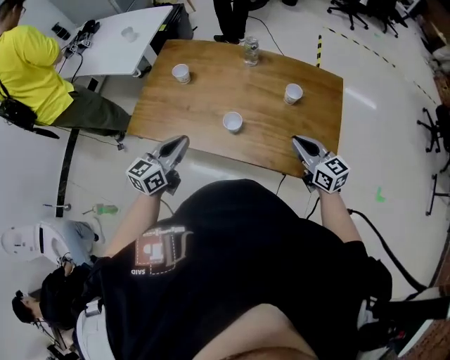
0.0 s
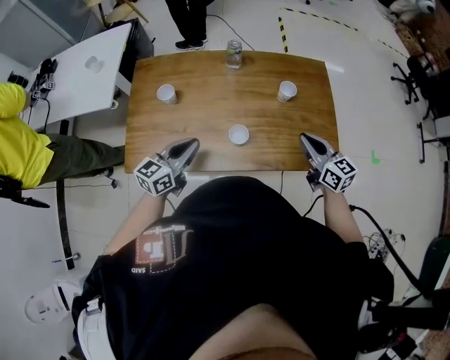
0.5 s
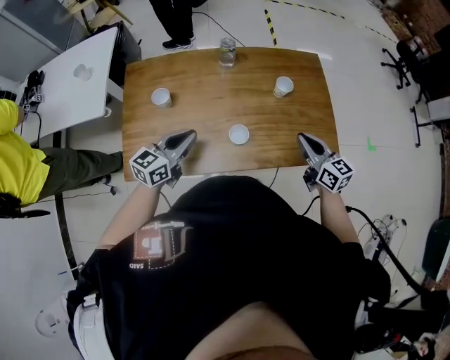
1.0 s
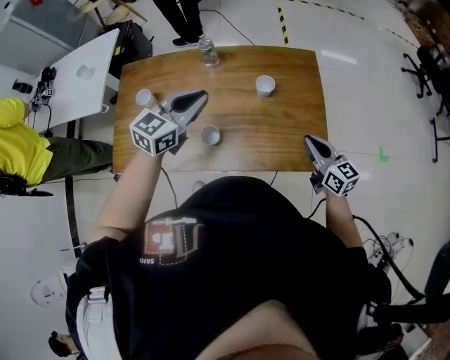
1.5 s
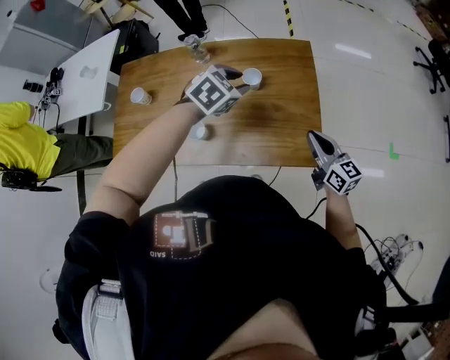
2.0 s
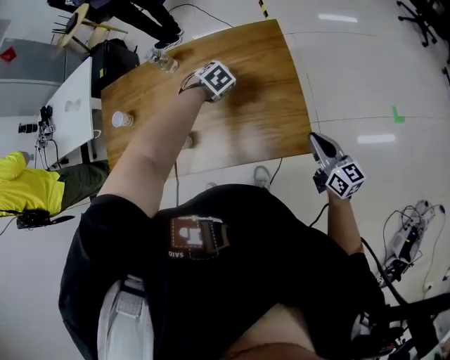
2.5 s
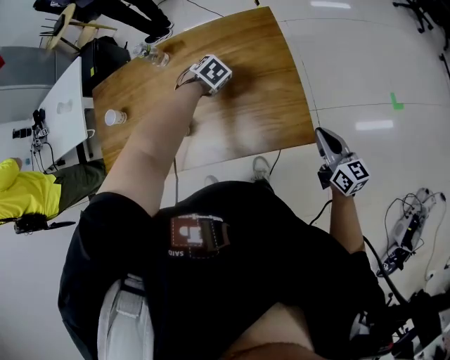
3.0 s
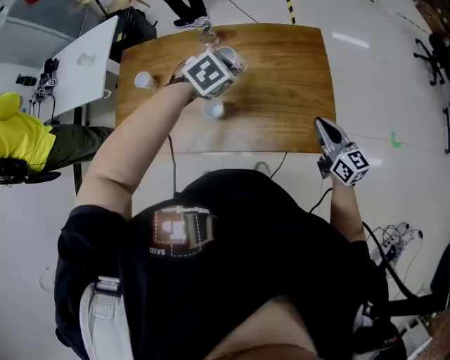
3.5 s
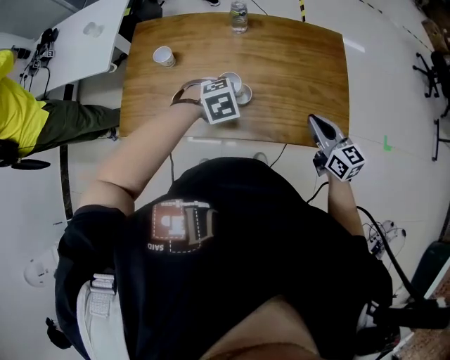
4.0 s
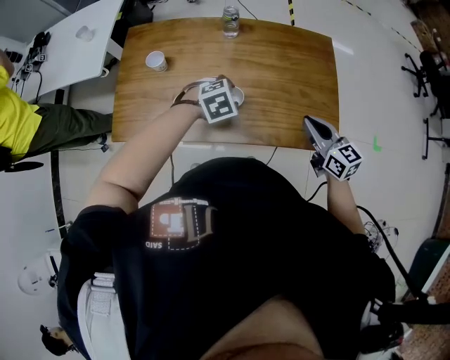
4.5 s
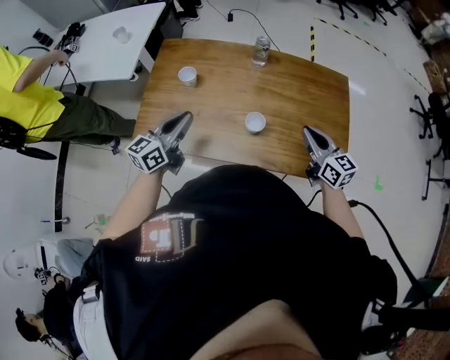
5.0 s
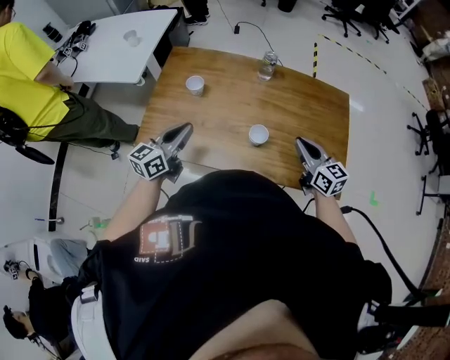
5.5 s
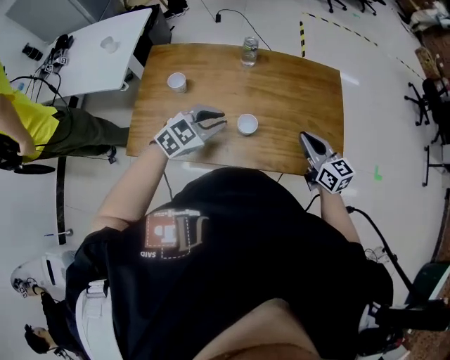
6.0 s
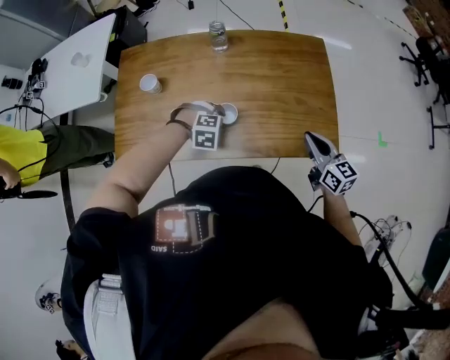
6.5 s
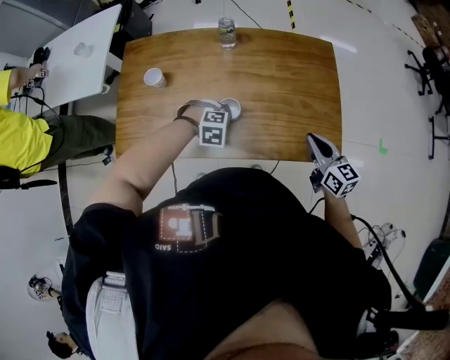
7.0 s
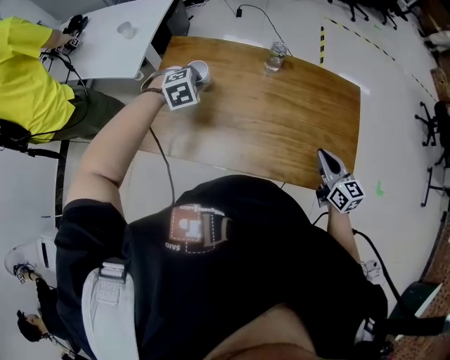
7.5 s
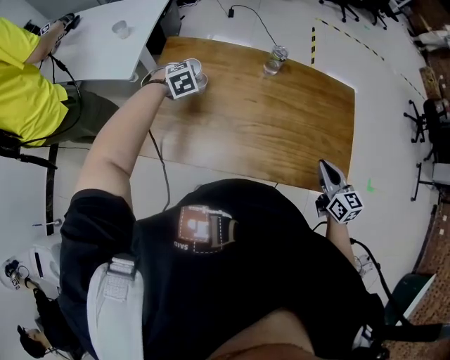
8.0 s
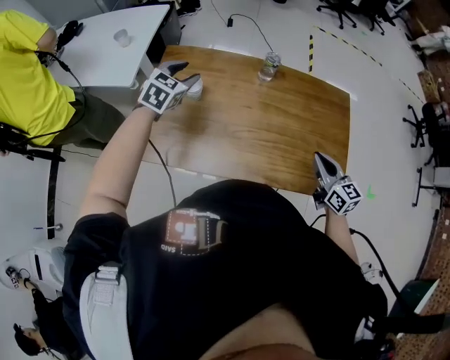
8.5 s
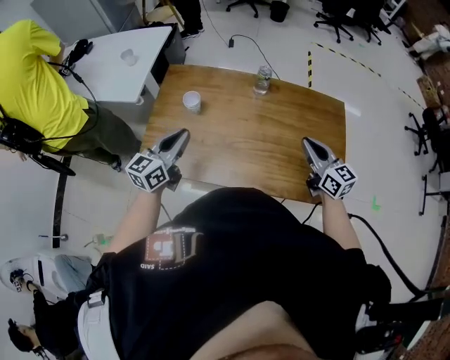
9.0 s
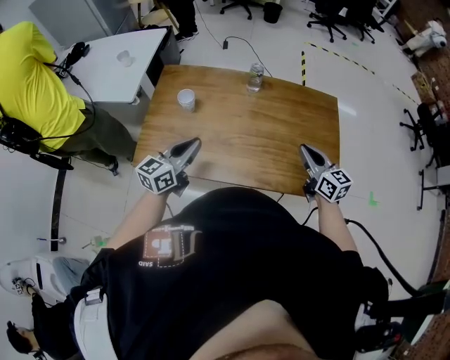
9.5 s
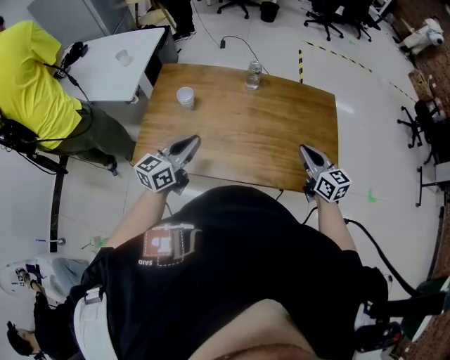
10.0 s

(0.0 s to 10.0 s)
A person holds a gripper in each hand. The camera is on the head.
0.0 s - 2.0 s: The left gripper travels upward and back again, approximately 5 cm each way, points its fingers roughly 40 degrees further downward, and opens its fingers. Meanwhile the right gripper moves some 20 cm, and turns by approximately 20 degrees.
2.0 s - 4.0 s: The left gripper moves up and down over roughly 20 cm, changing direction 2 times, turns by about 20 degrees, and closes up; the right gripper goes downward and returns, about 5 cm each way.
4.0 s - 6.0 s: The left gripper heads upward, covering roughly 10 cm, travels to the left and back again, approximately 20 cm each way, points its fingers about 40 degrees further upward, and opens and closes again.
6.0 s - 8.0 s: The left gripper shifts approximately 30 cm to the left, forward and downward, points its fingers some 40 degrees further downward, and opens and closes again. Meanwhile the right gripper reaches roughly 10 cm to the right, then returns.
8.0 s - 10.0 s: The left gripper moves backward and upward, some 25 cm, angles its fingers upward, by roughly 60 degrees, and opens, then closes again.

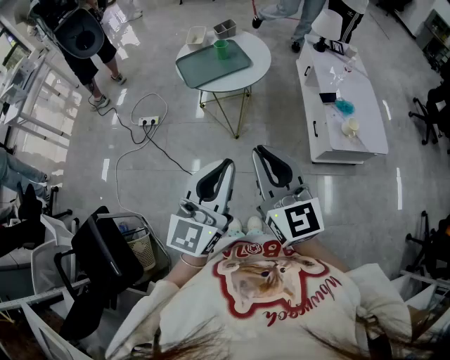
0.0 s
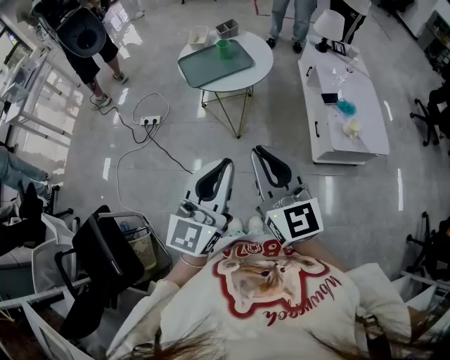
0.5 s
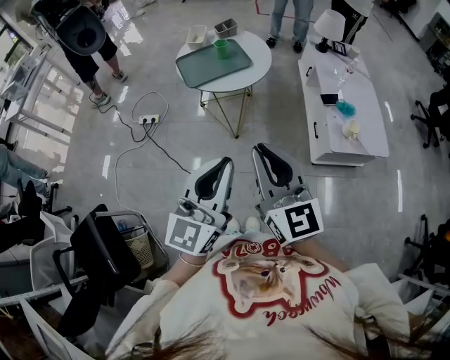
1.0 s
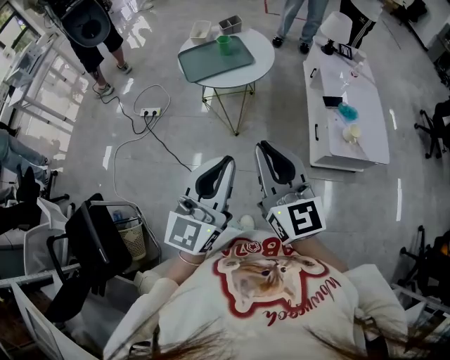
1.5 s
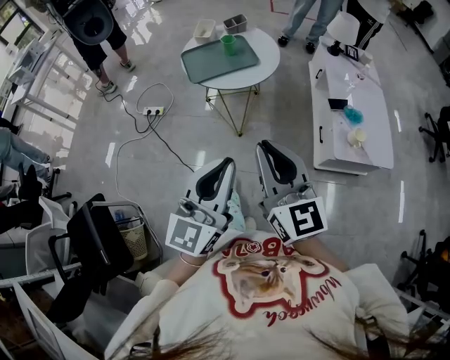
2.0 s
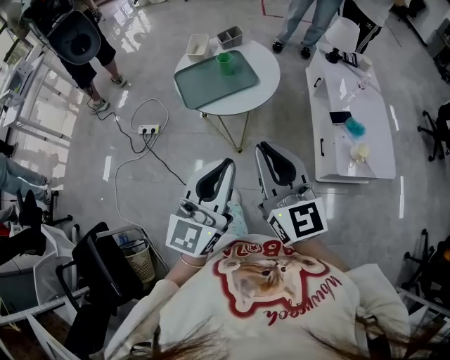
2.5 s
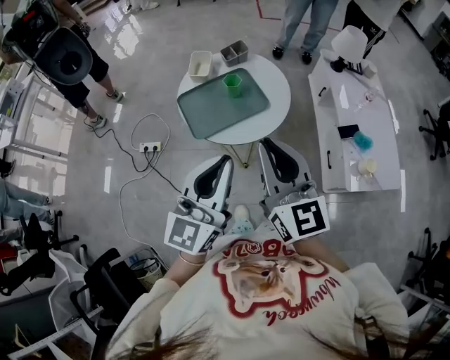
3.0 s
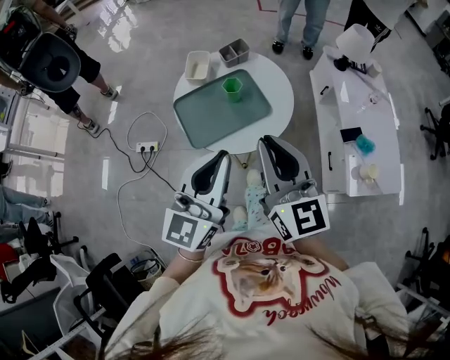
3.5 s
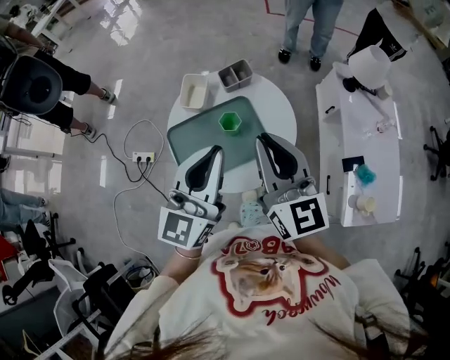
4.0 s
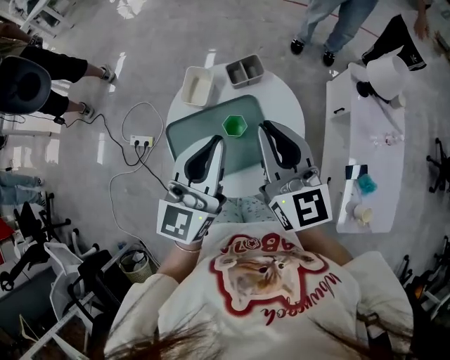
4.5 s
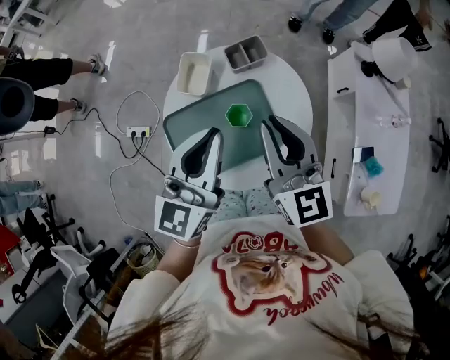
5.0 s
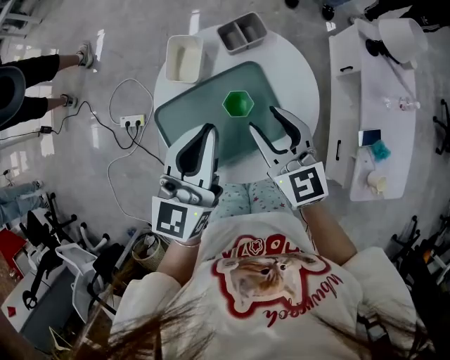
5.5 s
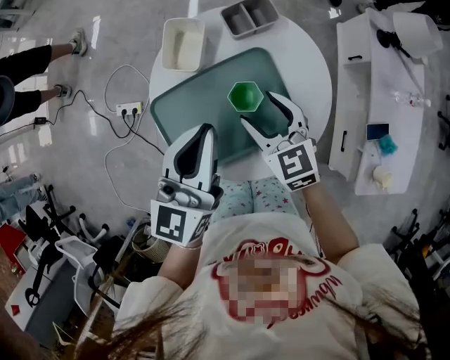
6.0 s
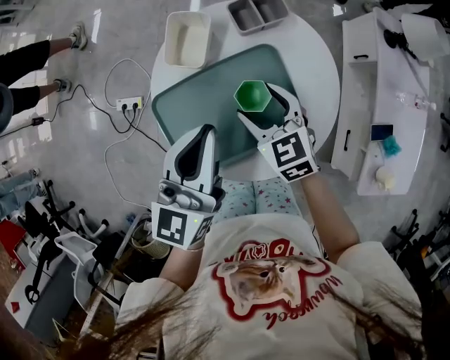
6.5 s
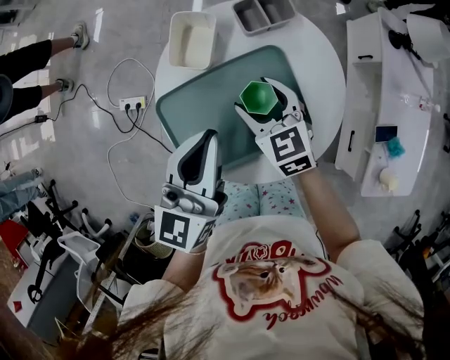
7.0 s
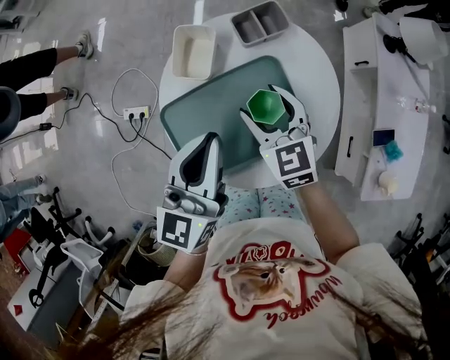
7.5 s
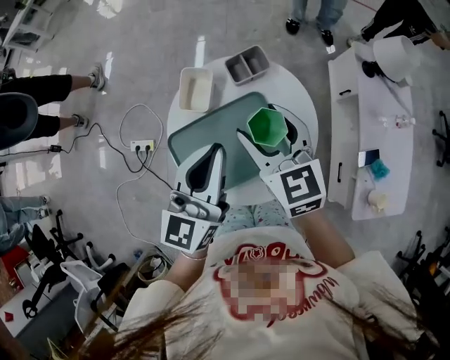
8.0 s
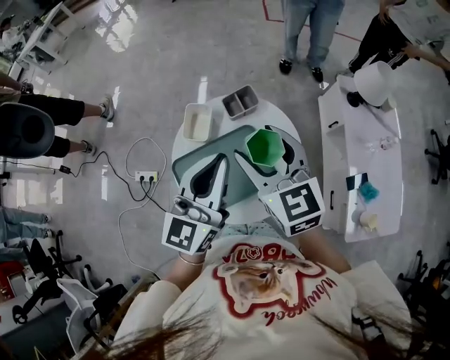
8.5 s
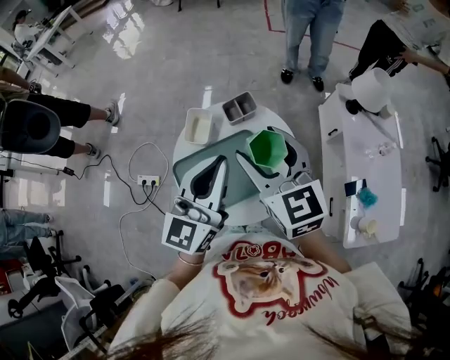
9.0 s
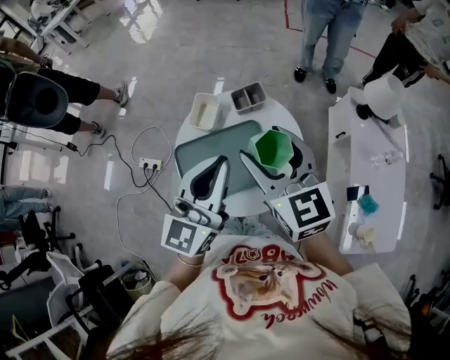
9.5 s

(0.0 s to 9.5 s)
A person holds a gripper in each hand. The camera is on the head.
0.0 s - 2.0 s: There are only small adjustments of the grippers.
2.0 s - 4.0 s: Both grippers are carried forward, approximately 50 cm.
4.0 s - 5.5 s: Both grippers move downward and forward, some 15 cm. The right gripper changes its angle by roughly 20 degrees, and opens.
5.5 s - 7.5 s: The right gripper is displaced downward and forward by roughly 10 cm, and opens up. Meanwhile the left gripper shifts by roughly 5 cm.
7.5 s - 9.5 s: The left gripper heads upward and to the right, covering roughly 15 cm. The right gripper goes approximately 25 cm upward.

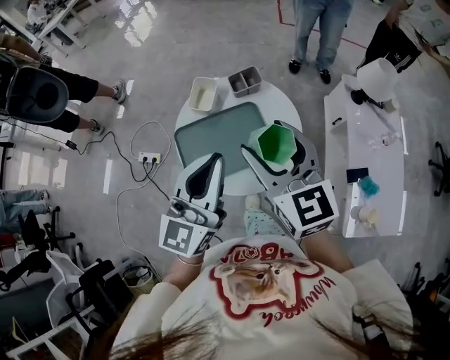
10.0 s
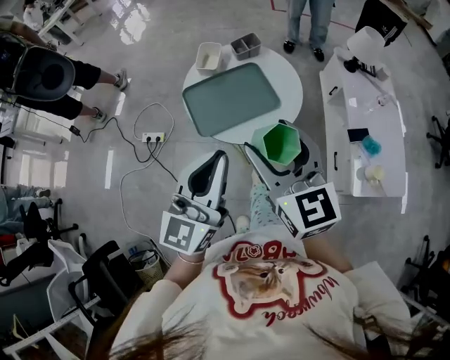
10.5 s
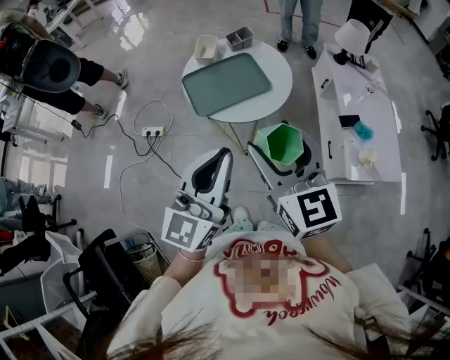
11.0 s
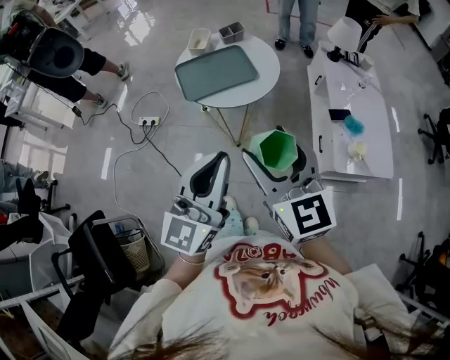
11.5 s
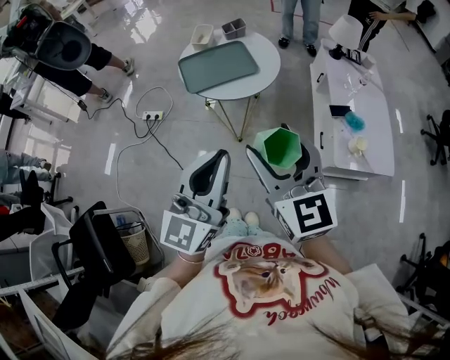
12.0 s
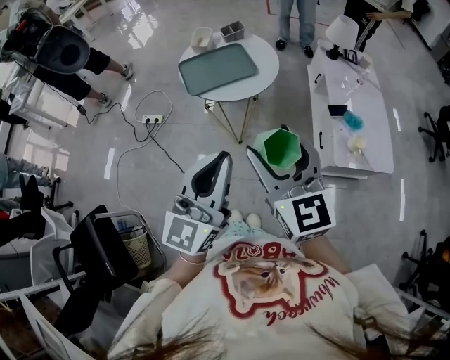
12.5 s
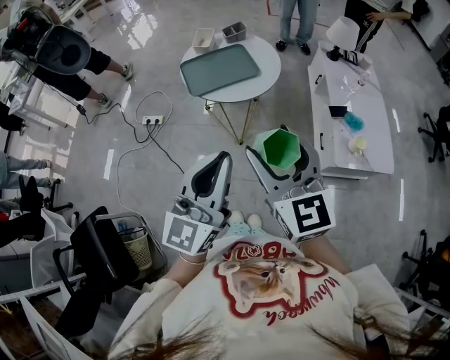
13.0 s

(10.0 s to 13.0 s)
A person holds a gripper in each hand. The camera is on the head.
10.0 s - 11.5 s: Both grippers travel together backward, about 35 cm.
11.5 s - 13.0 s: There are only small adjustments of the grippers.

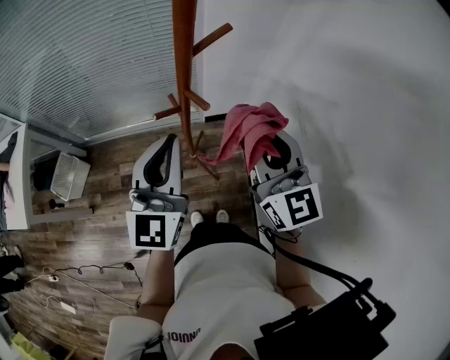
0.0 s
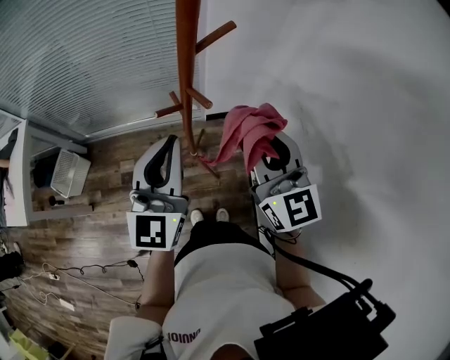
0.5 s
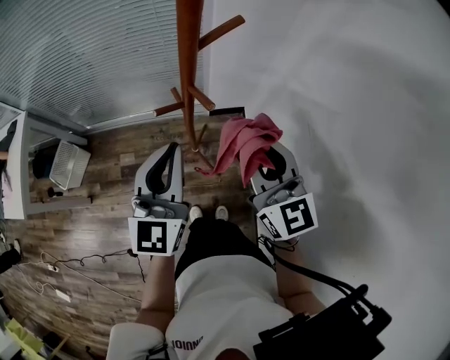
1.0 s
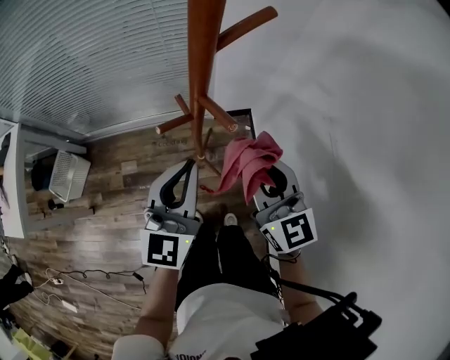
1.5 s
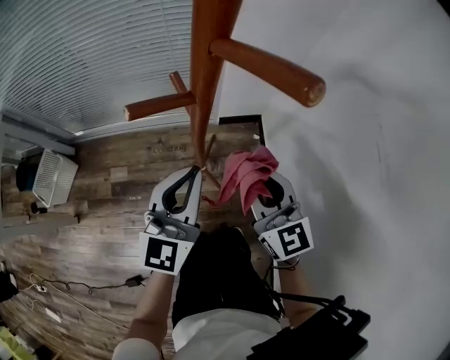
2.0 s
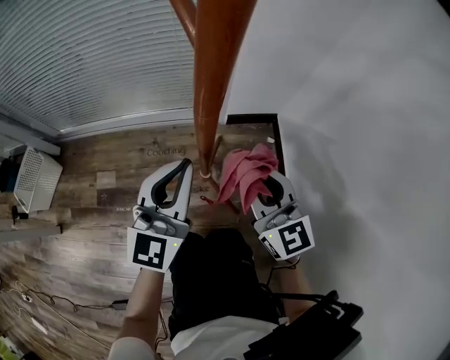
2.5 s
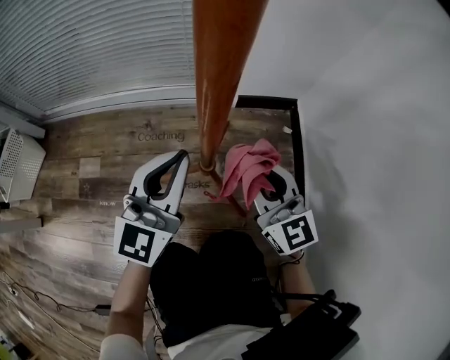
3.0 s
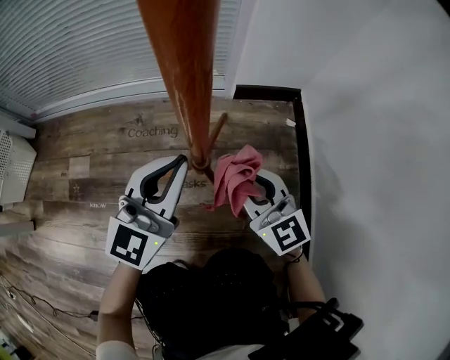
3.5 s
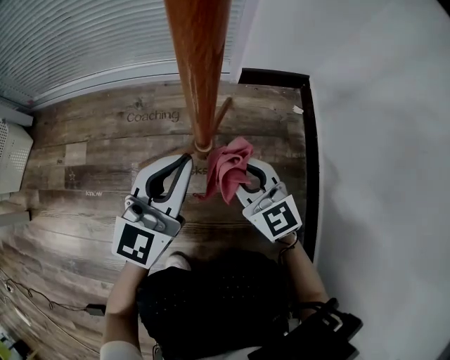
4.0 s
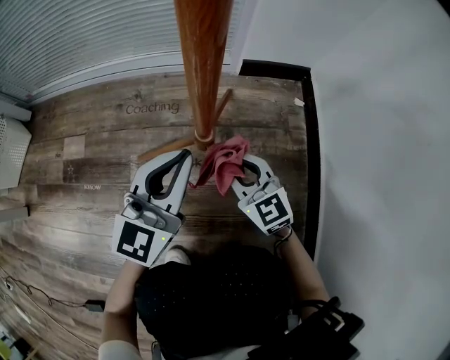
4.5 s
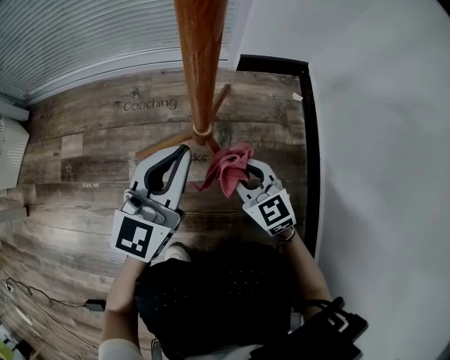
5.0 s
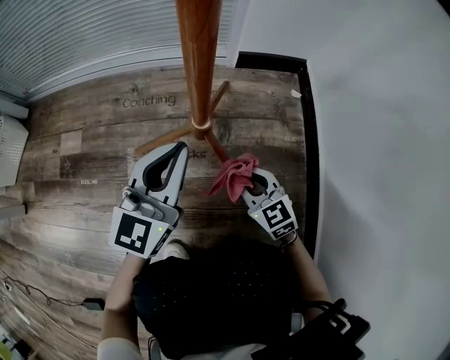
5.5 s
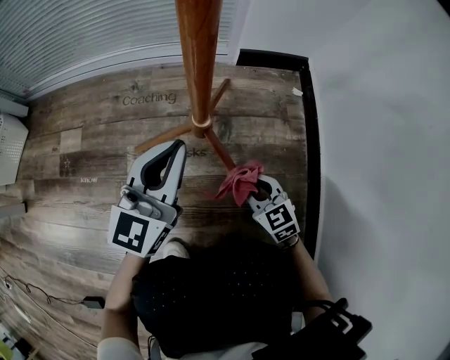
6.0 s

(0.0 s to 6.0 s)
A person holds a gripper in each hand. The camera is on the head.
0.0 s - 2.0 s: Both grippers travel together downward, some 20 cm.
2.0 s - 4.0 s: The grippers both shift downward by approximately 40 cm. The right gripper turns by some 20 degrees.
4.0 s - 6.0 s: The right gripper shifts roughly 15 cm downward and backward, and changes its angle by approximately 30 degrees.
